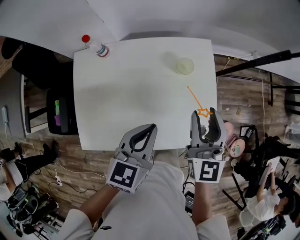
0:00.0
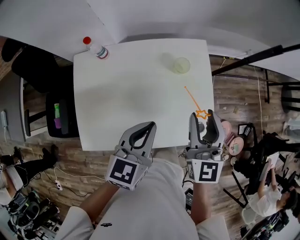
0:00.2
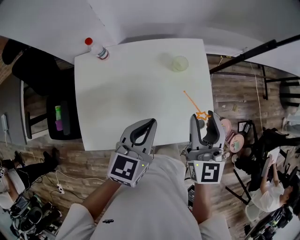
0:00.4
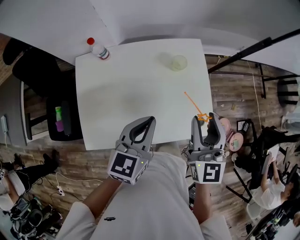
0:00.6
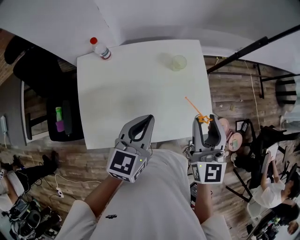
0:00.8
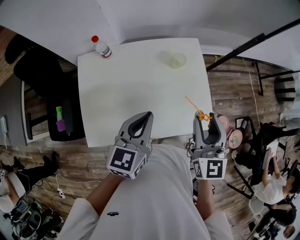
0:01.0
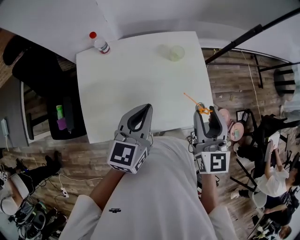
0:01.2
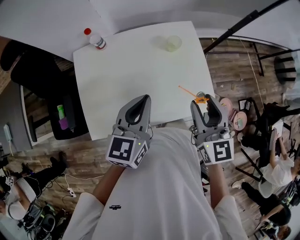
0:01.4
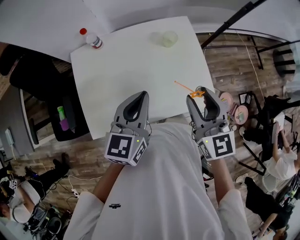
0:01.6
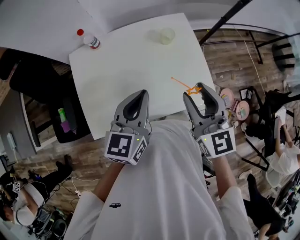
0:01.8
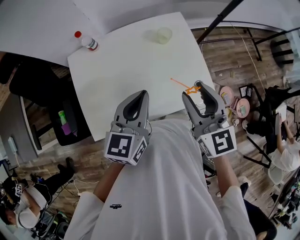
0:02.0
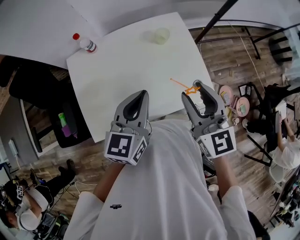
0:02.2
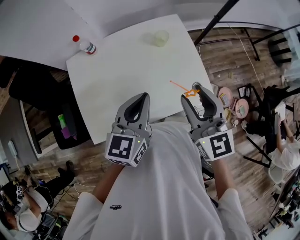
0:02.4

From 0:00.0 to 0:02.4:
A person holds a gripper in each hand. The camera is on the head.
From 0:00.0 to 0:01.2: The right gripper heads backward, covering roughly 10 cm, while the left gripper goes approximately 5 cm upward.
From 0:01.2 to 0:02.4: There are only small adjustments of the grippers.

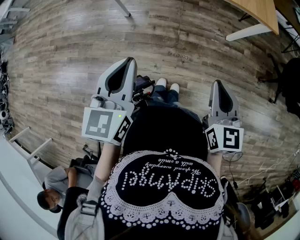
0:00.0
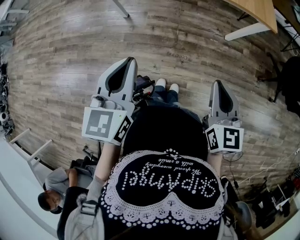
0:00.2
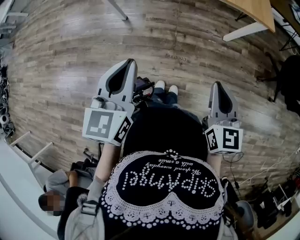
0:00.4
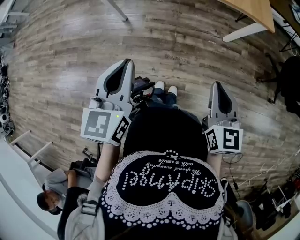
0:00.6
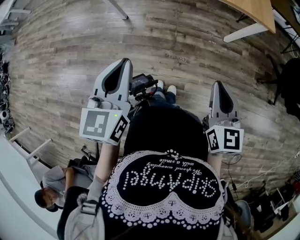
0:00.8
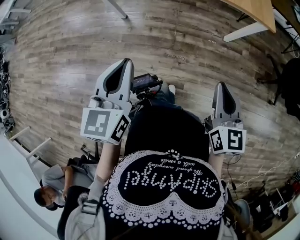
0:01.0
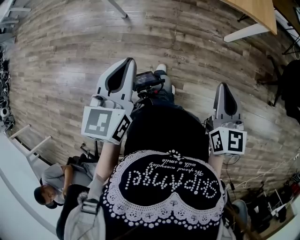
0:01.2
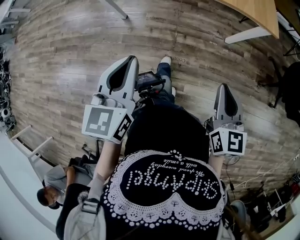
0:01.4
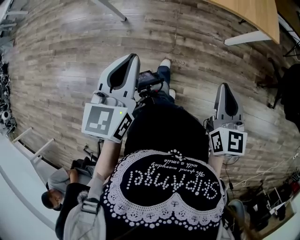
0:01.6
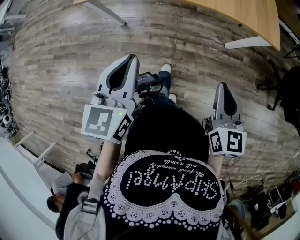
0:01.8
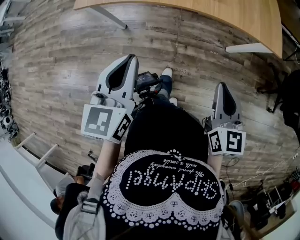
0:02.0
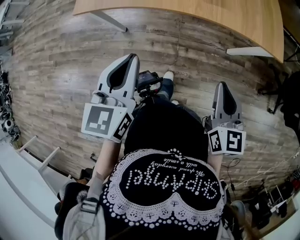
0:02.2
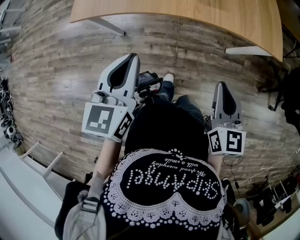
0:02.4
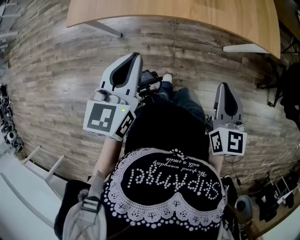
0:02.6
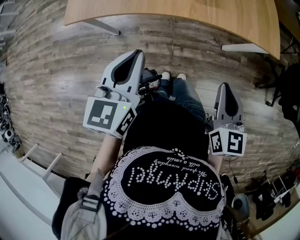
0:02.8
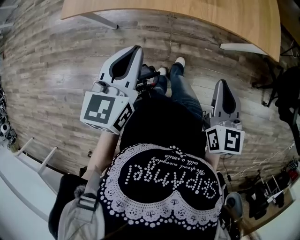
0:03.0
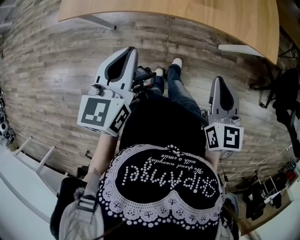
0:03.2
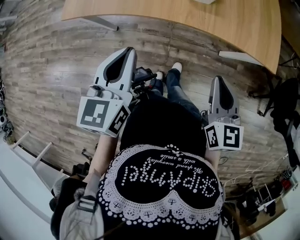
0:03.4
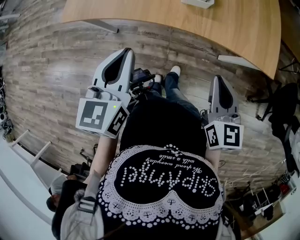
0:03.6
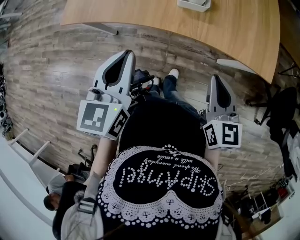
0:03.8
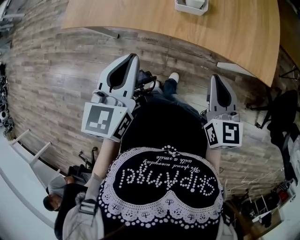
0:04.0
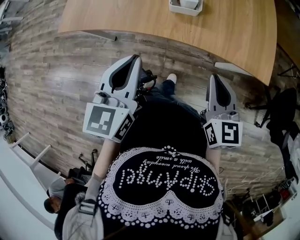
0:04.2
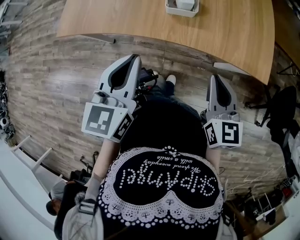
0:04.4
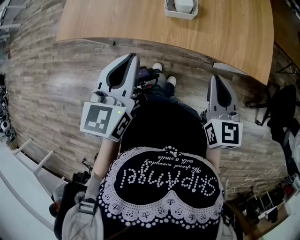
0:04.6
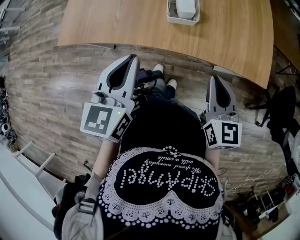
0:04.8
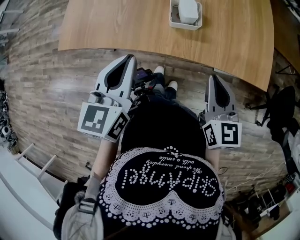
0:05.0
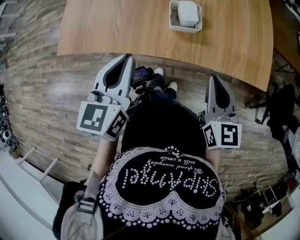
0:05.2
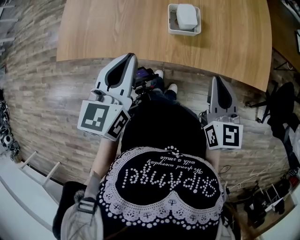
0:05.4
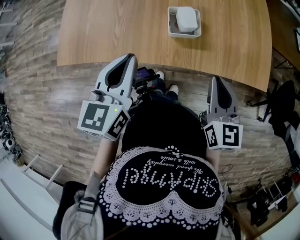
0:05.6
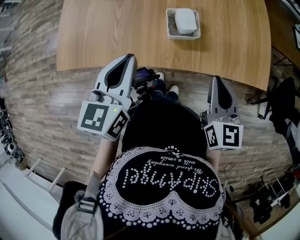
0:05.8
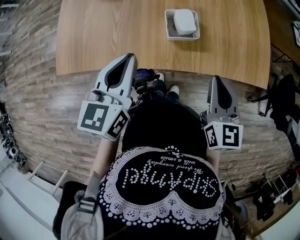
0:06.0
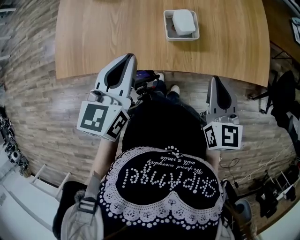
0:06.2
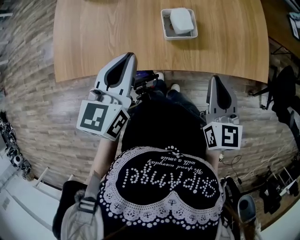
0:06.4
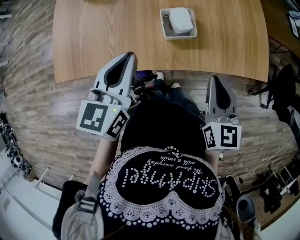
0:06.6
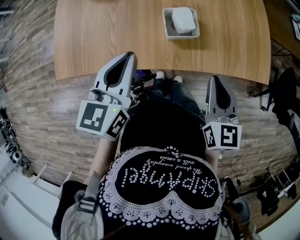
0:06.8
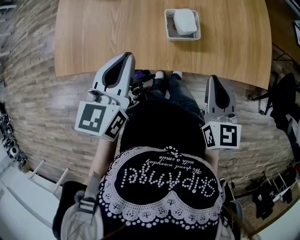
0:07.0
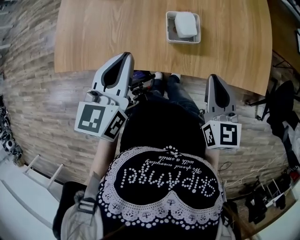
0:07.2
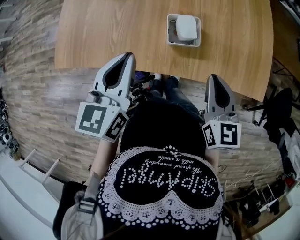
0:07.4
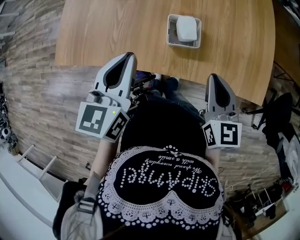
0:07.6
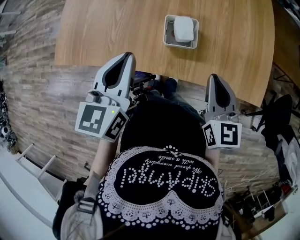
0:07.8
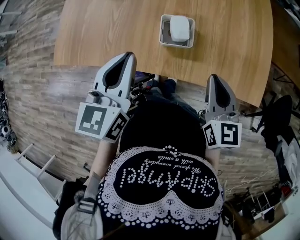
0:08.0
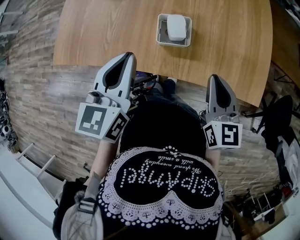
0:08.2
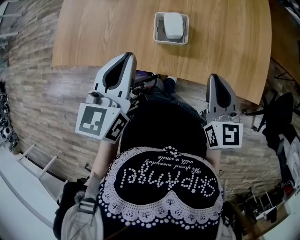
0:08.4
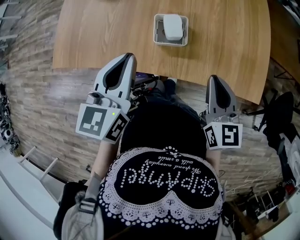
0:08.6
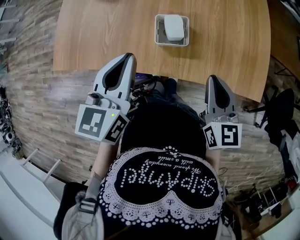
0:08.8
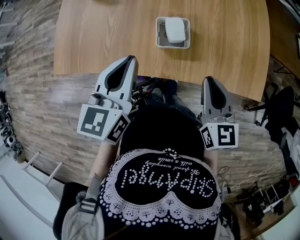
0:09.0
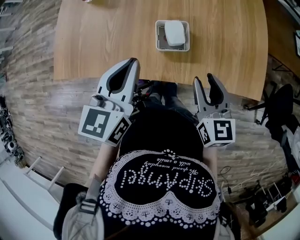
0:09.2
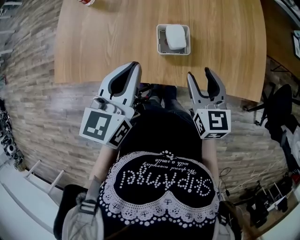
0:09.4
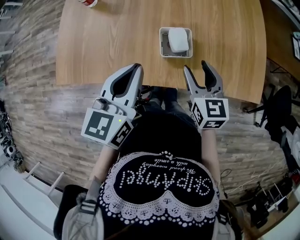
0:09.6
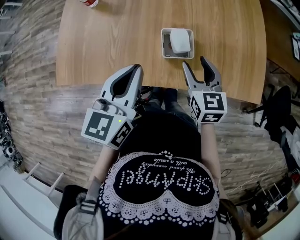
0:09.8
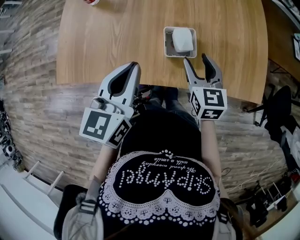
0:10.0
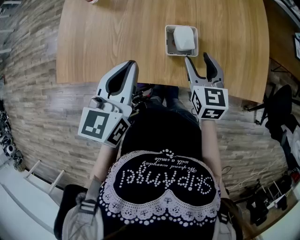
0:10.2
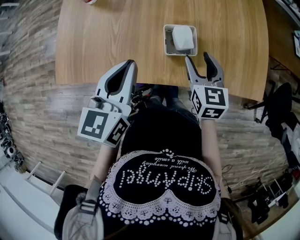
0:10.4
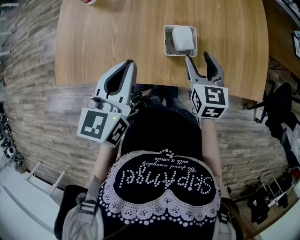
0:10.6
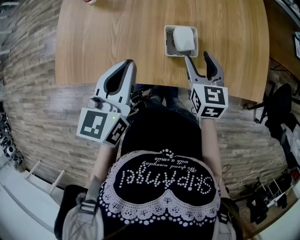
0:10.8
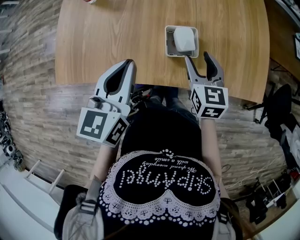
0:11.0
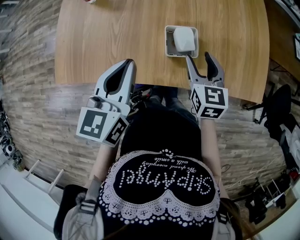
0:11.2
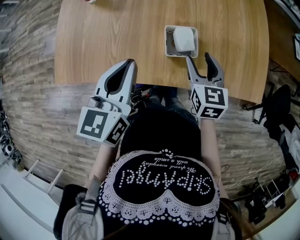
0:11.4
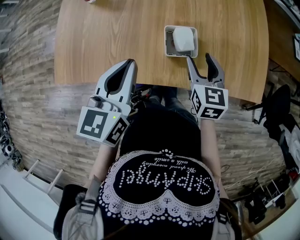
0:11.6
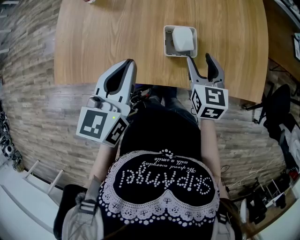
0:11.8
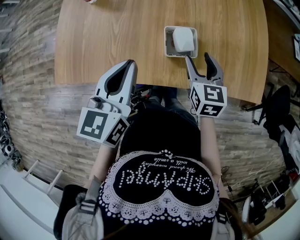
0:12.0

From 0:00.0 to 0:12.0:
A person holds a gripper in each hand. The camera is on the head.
From 0:00.0 to 0:01.6: The right gripper goes approximately 10 cm forward and to the right. Meanwhile the left gripper travels forward by roughly 10 cm.
From 0:01.6 to 0:03.0: Both grippers travel together forward, some 15 cm.
From 0:03.0 to 0:04.4: The right gripper is displaced forward and to the right by roughly 15 cm, while the left gripper travels to the right and forward by about 10 cm.
From 0:04.4 to 0:06.0: The right gripper travels forward by roughly 10 cm; the left gripper shifts approximately 15 cm forward and to the left.
From 0:06.0 to 0:07.6: The grippers move only a little.
From 0:07.6 to 0:09.0: The grippers make only small movements.
From 0:09.0 to 0:10.4: The right gripper heads forward, to the left and downward, covering approximately 10 cm, and opens up.
From 0:10.4 to 0:12.0: Both grippers stay put.

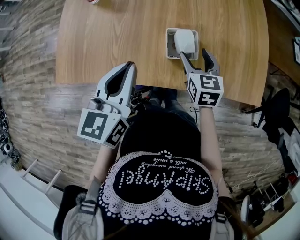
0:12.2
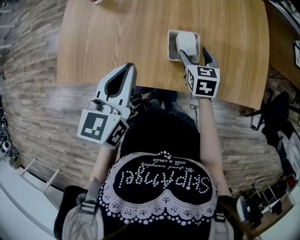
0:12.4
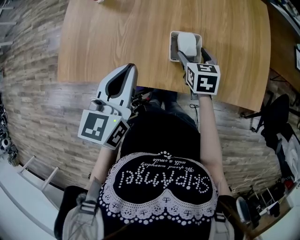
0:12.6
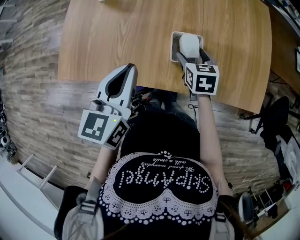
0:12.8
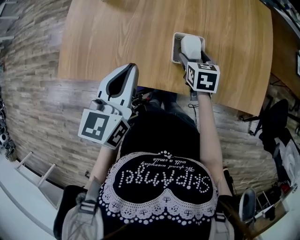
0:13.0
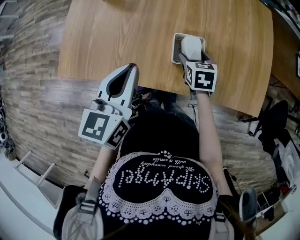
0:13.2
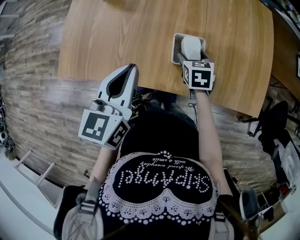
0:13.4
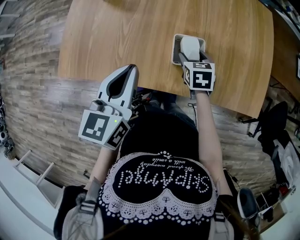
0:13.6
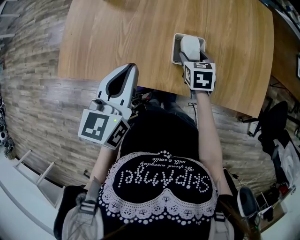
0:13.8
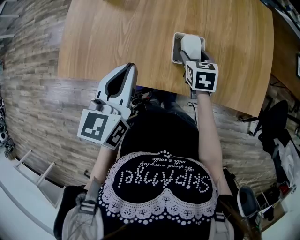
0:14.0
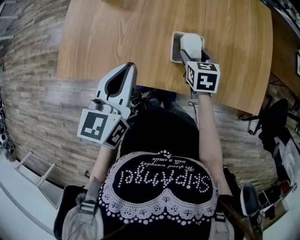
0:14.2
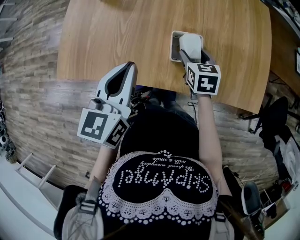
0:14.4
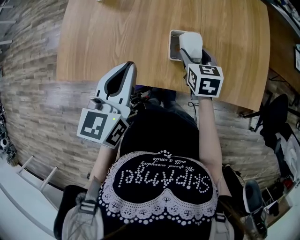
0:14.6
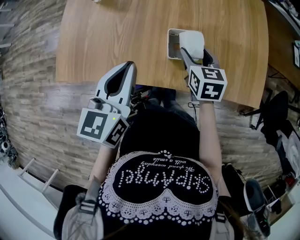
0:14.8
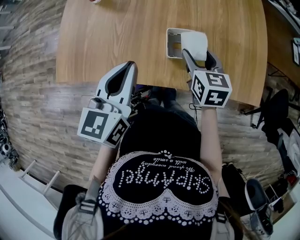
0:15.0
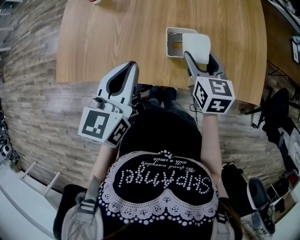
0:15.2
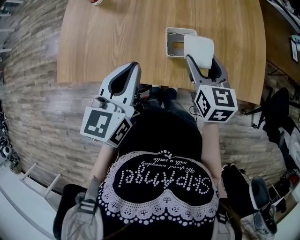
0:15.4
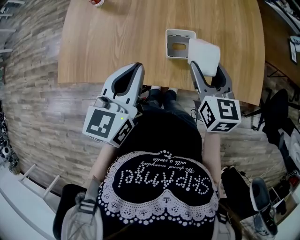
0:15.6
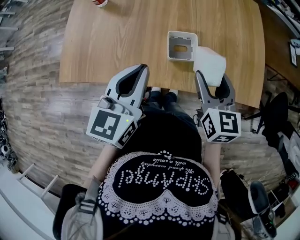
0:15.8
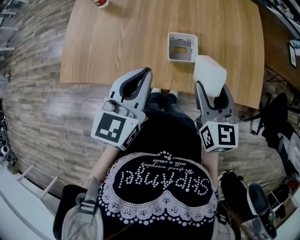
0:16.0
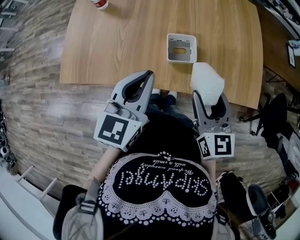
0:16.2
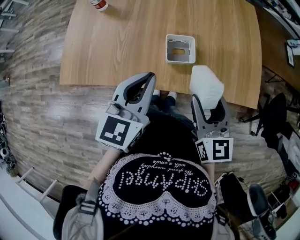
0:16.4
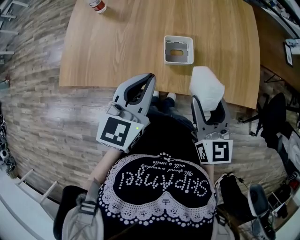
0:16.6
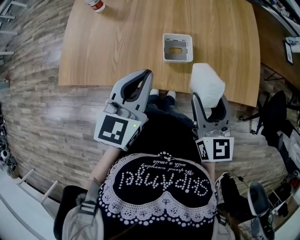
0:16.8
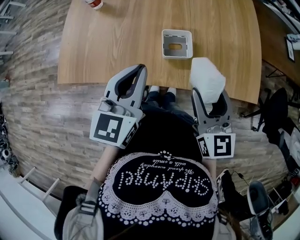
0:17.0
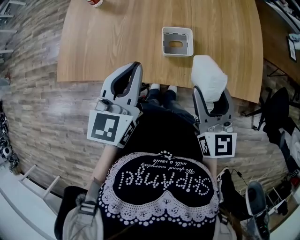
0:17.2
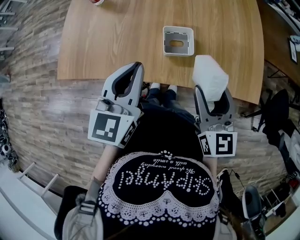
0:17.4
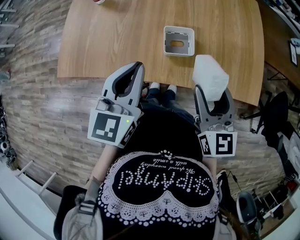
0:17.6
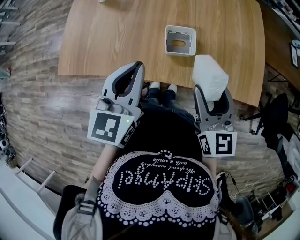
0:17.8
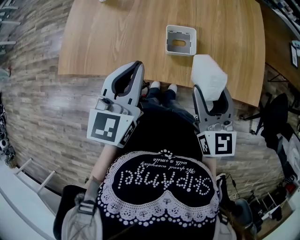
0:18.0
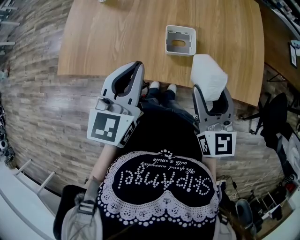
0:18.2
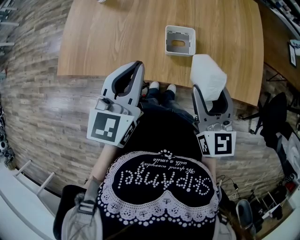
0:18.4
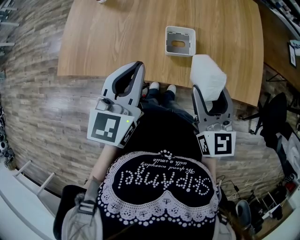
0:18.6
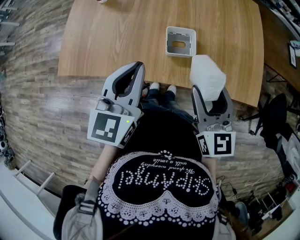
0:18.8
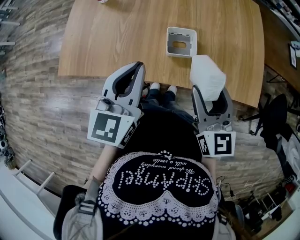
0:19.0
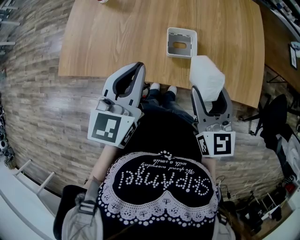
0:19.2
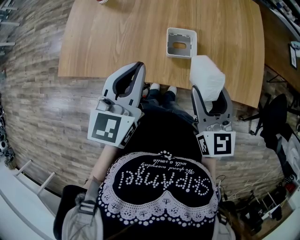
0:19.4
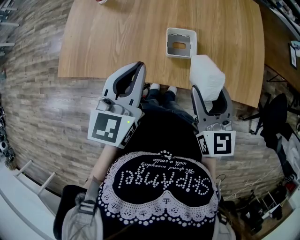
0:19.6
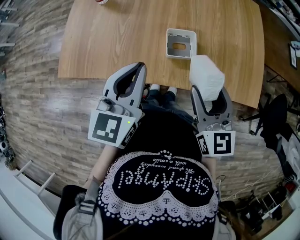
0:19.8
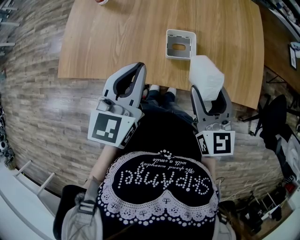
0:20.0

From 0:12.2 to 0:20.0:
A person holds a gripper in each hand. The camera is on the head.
From 0:12.2 to 0:13.8: The right gripper is displaced downward by roughly 5 cm.
From 0:13.8 to 0:15.4: The right gripper goes approximately 15 cm upward and backward, and swivels roughly 20 degrees.
From 0:15.4 to 0:16.8: The right gripper heads backward and upward, covering roughly 10 cm.
From 0:16.8 to 0:20.0: The grippers move only a little.

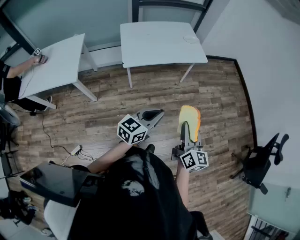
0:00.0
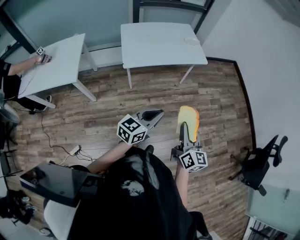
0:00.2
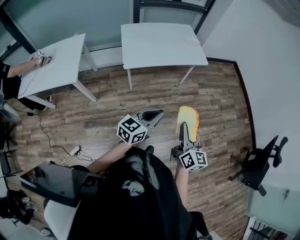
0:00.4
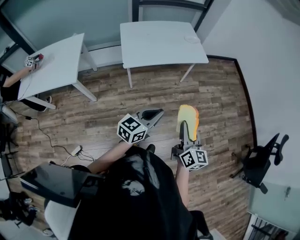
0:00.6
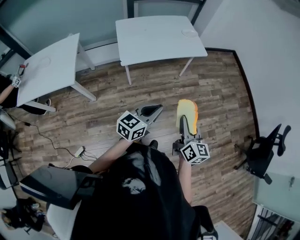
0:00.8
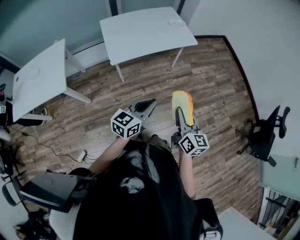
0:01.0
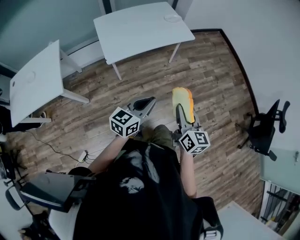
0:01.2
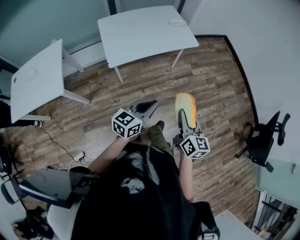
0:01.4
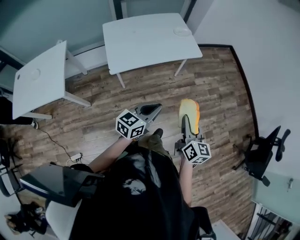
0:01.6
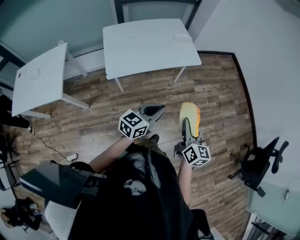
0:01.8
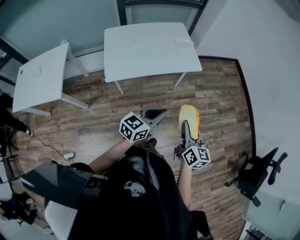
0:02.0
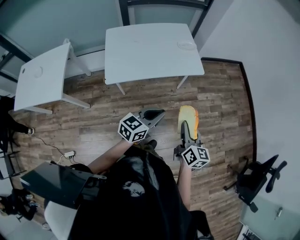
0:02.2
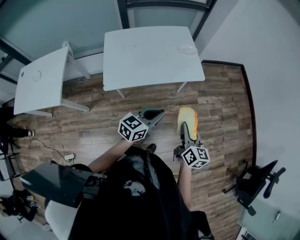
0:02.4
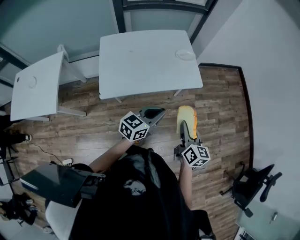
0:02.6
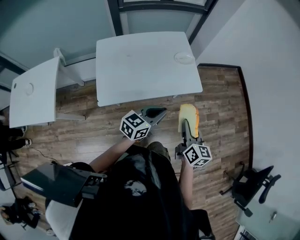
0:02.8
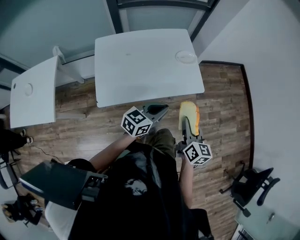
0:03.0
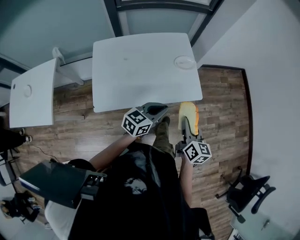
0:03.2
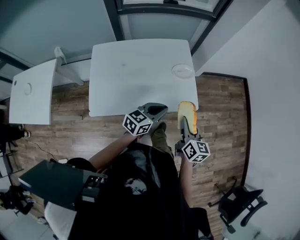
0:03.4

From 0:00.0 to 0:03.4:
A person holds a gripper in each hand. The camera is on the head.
From 0:00.0 to 0:01.6: Both grippers travel together forward, some 10 cm.
From 0:01.6 to 0:03.4: The pair of grippers is taken forward, about 50 cm.
